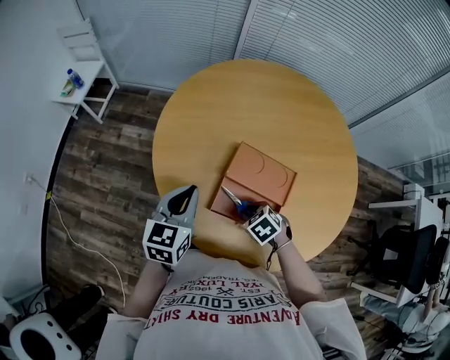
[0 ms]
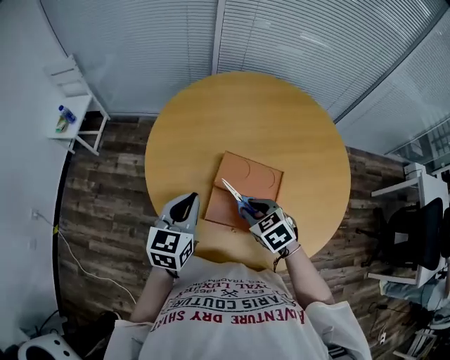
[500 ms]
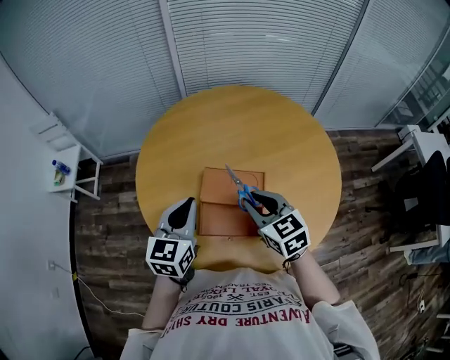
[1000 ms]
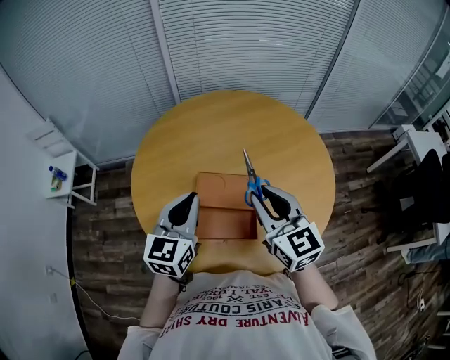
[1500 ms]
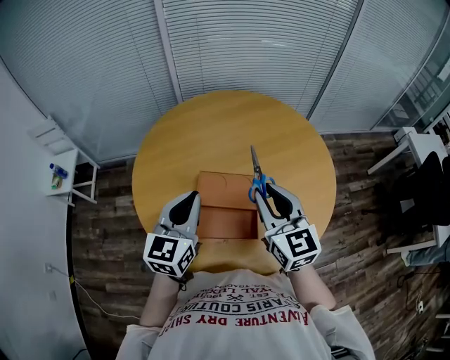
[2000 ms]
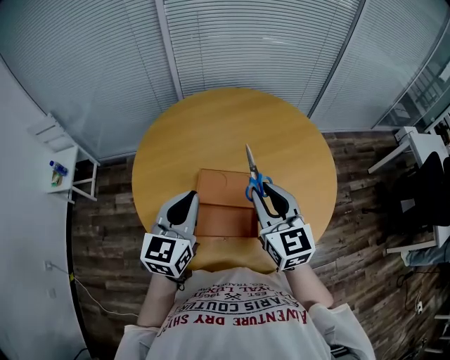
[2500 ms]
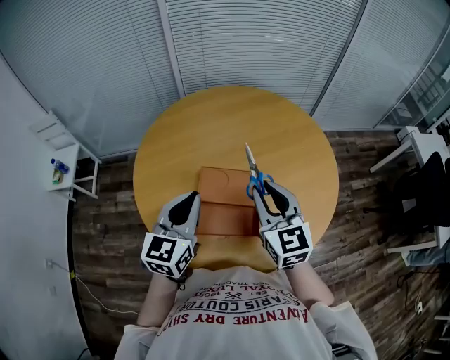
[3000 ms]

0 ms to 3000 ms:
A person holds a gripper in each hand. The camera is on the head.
0 ms to 1500 ms: The left gripper goes approximately 15 cm to the right and upward, and turns by about 20 degrees, while the right gripper is displaced upward by some 30 cm, and points its fingers about 60 degrees further upward.
1500 ms to 3000 ms: There are only small adjustments of the grippers.

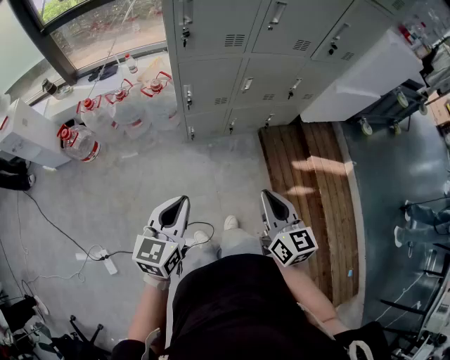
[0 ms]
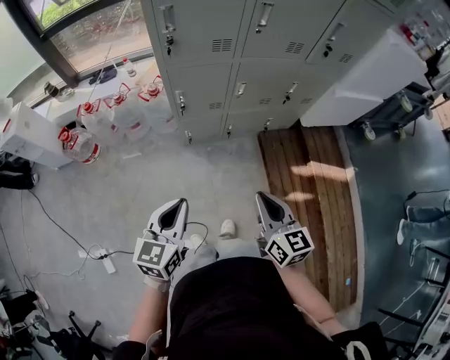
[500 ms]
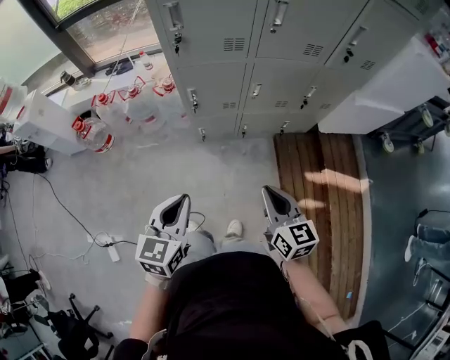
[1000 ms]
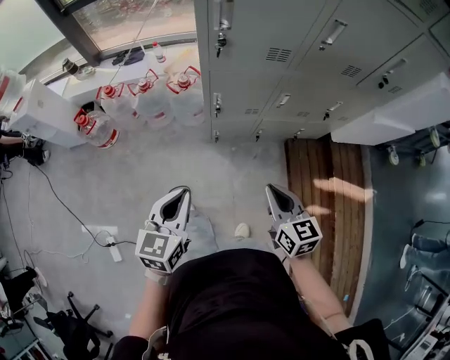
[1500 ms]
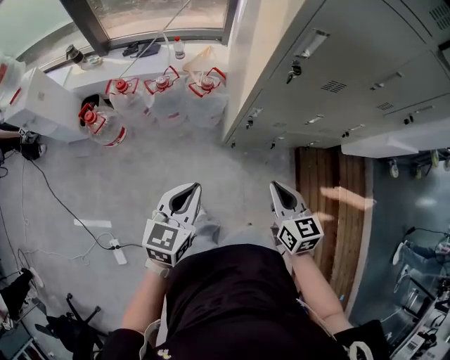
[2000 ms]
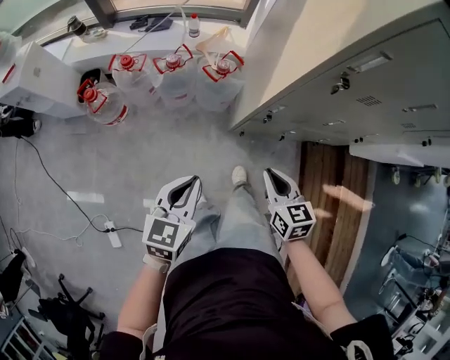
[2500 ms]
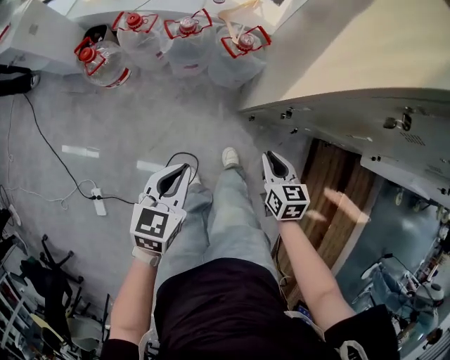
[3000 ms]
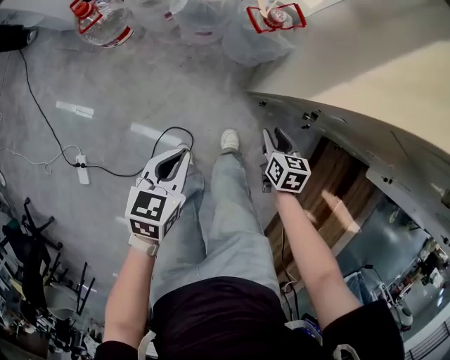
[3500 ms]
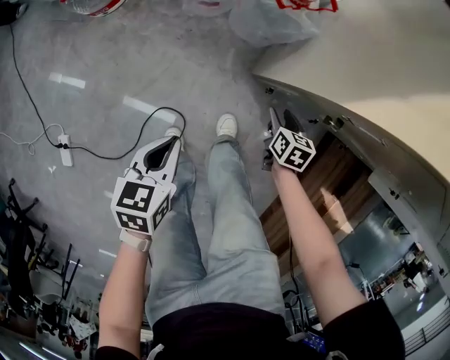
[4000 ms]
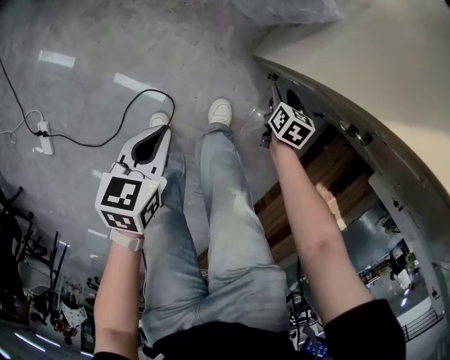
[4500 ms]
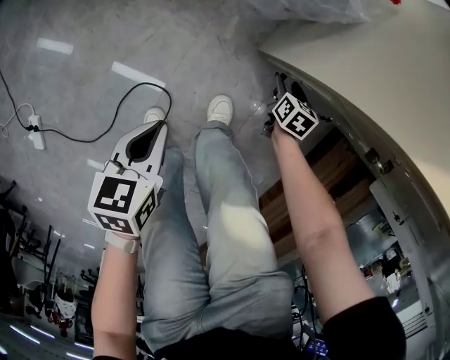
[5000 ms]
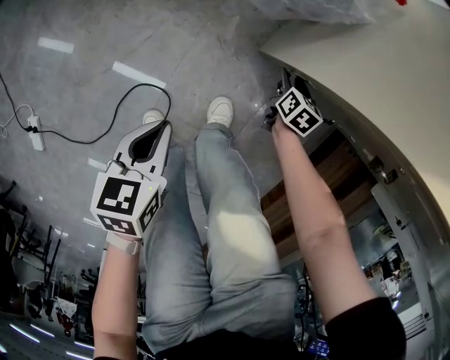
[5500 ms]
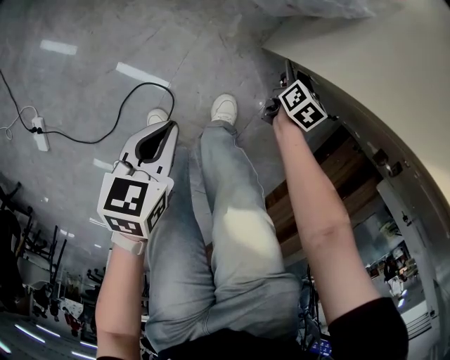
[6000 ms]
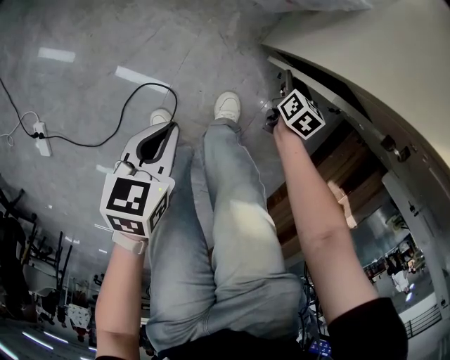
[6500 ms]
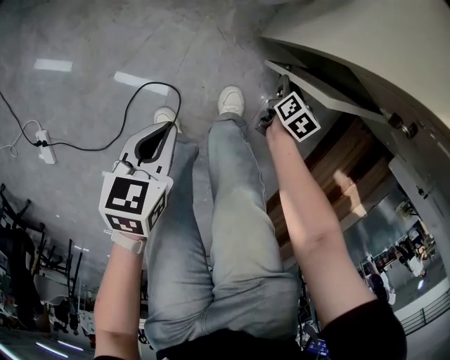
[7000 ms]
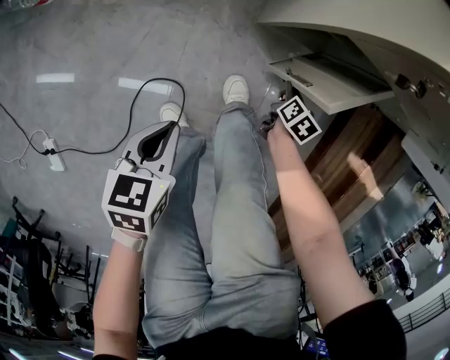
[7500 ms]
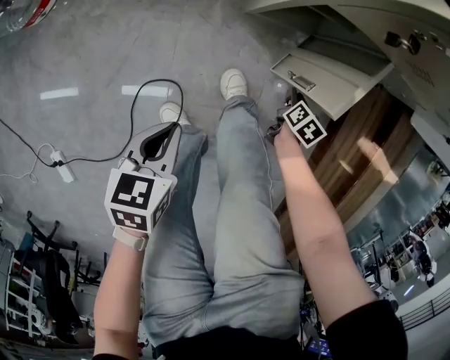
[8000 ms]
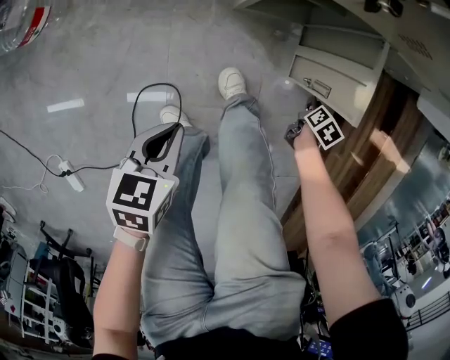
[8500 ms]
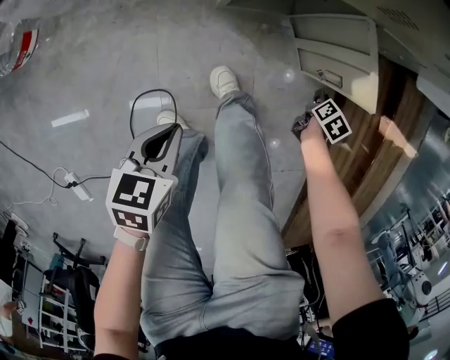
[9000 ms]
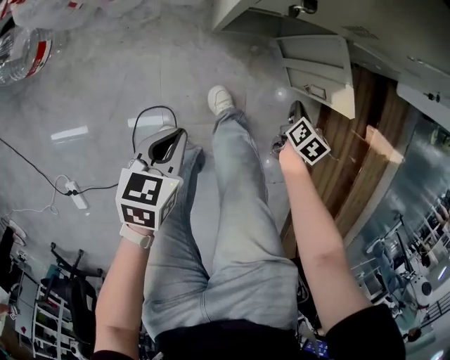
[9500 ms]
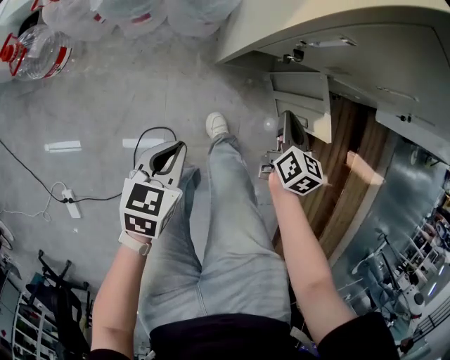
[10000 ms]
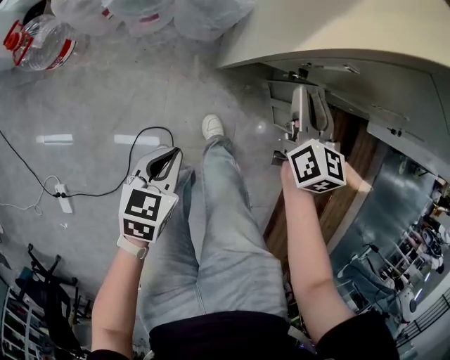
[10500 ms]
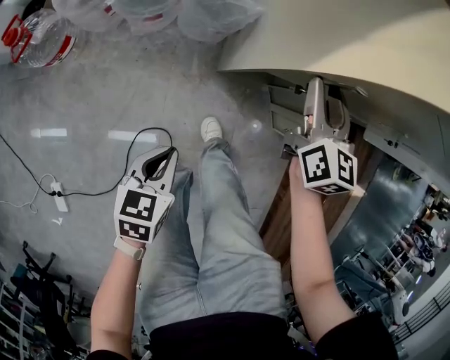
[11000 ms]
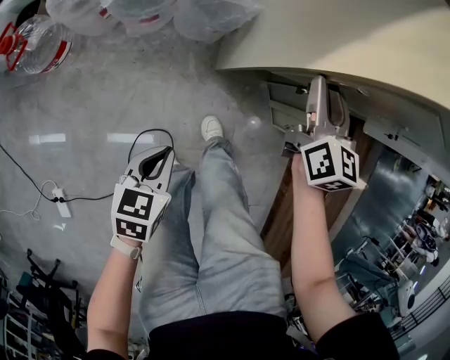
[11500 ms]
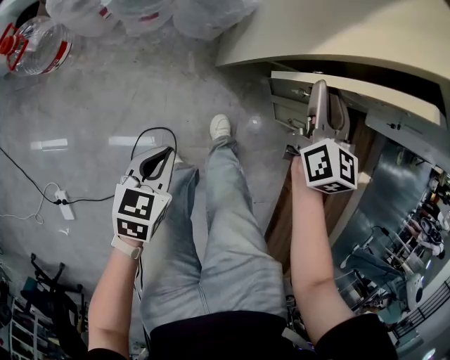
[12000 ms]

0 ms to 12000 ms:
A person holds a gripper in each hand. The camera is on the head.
0 ms to 2000 ms: The grippers both shift forward and to the left by approximately 30 cm.
2000 ms to 4000 ms: The left gripper moves downward, approximately 35 cm, and rotates roughly 40 degrees, while the right gripper is displaced downward and forward by approximately 50 cm, swivels roughly 30 degrees, and opens up.
4000 ms to 6000 ms: The left gripper heads downward, covering some 15 cm; the right gripper moves downward and forward, some 20 cm.
6000 ms to 8000 ms: The right gripper moves about 25 cm, turns by about 30 degrees, and closes its fingers; the left gripper moves roughly 10 cm, and rotates roughly 20 degrees.
8000 ms to 10000 ms: The left gripper moves upward, about 15 cm. Meanwhile the right gripper goes some 30 cm upward, turns by approximately 30 degrees, and closes up.
10000 ms to 12000 ms: The left gripper goes about 5 cm to the left; the right gripper is displaced upward, to the left and forward by approximately 20 cm, changes its angle by about 20 degrees, and opens its fingers.

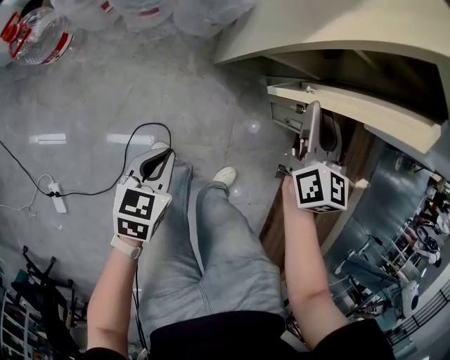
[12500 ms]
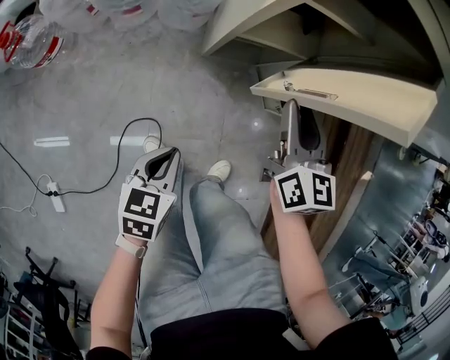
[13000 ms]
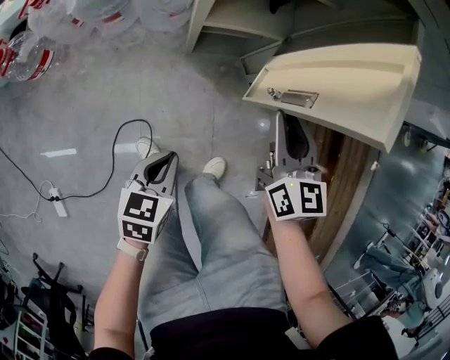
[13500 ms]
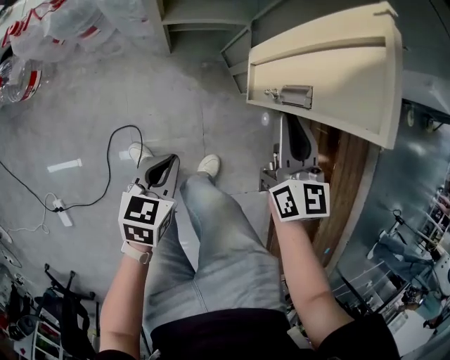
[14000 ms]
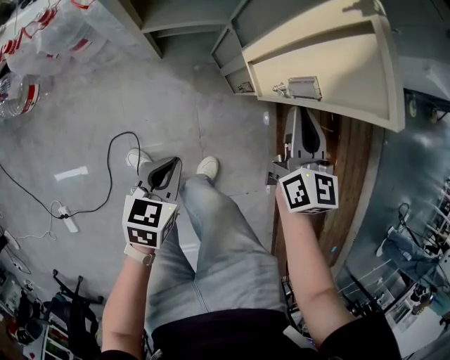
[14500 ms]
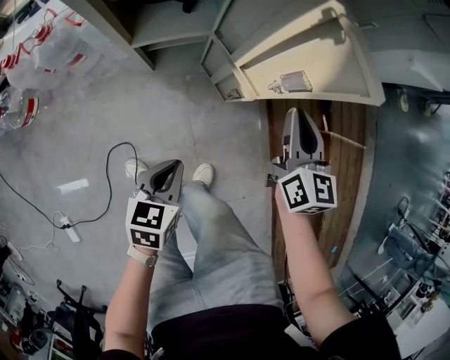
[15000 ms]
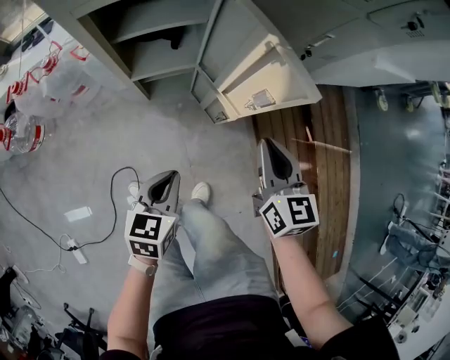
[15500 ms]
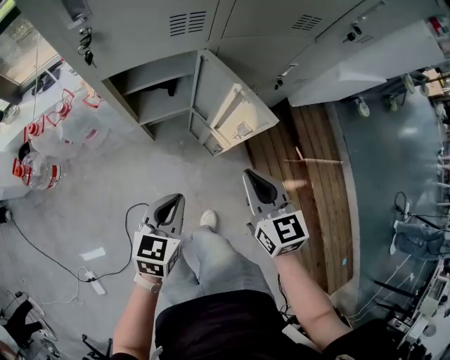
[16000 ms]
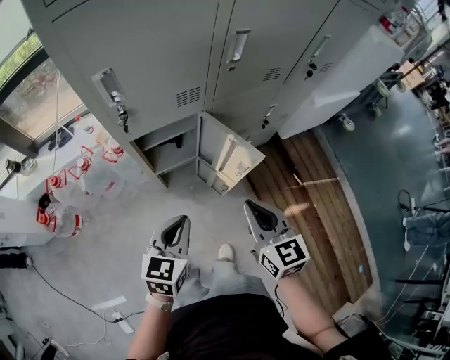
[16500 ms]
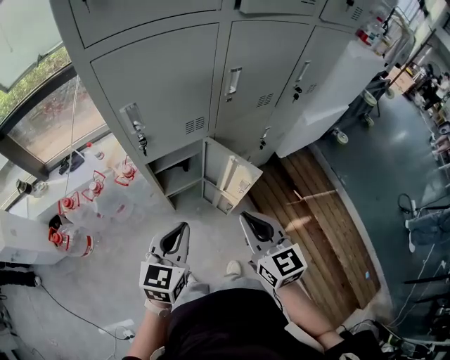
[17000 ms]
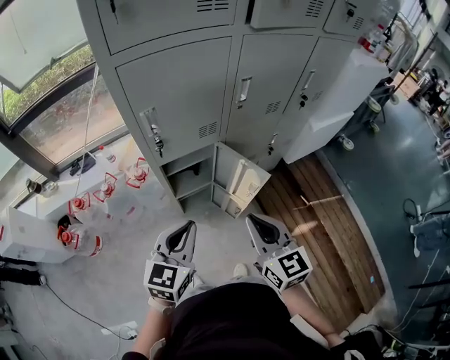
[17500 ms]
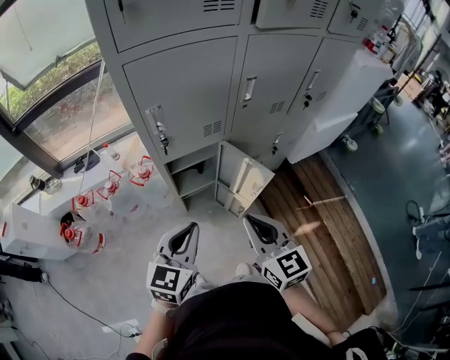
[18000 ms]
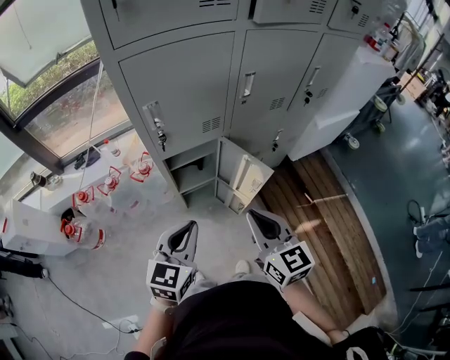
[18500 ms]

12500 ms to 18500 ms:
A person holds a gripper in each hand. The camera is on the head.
12500 ms to 14500 ms: Both grippers move to the right, roughly 30 cm. The right gripper closes its fingers.
14500 ms to 16500 ms: The grippers both shift upward by approximately 35 cm. The left gripper changes its angle by some 30 degrees.
16500 ms to 18500 ms: The left gripper shifts some 10 cm upward. Meanwhile the right gripper goes roughly 10 cm upward and to the left.

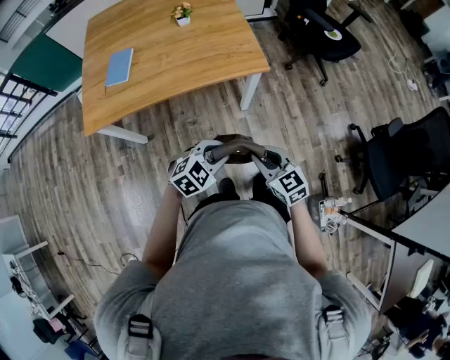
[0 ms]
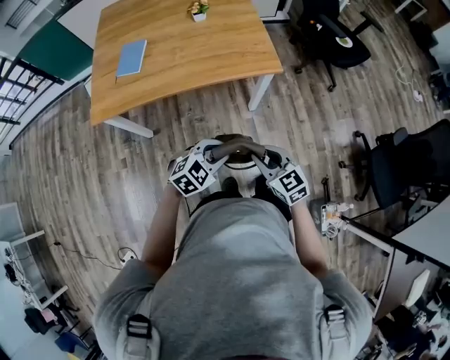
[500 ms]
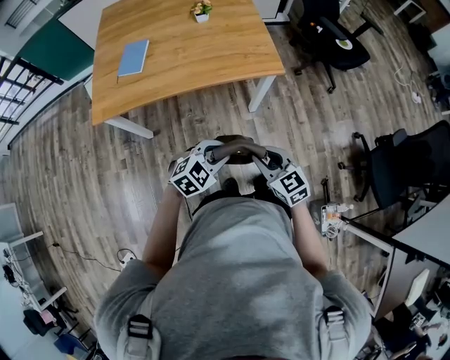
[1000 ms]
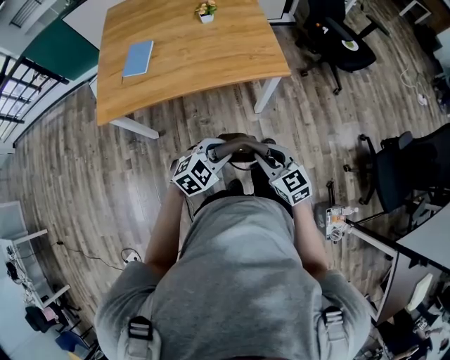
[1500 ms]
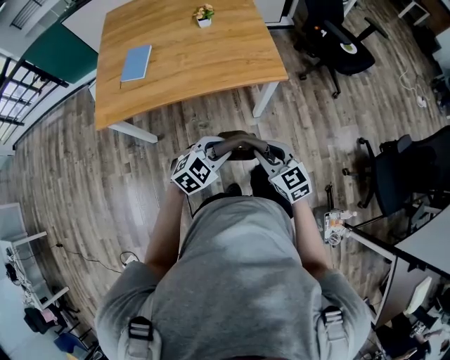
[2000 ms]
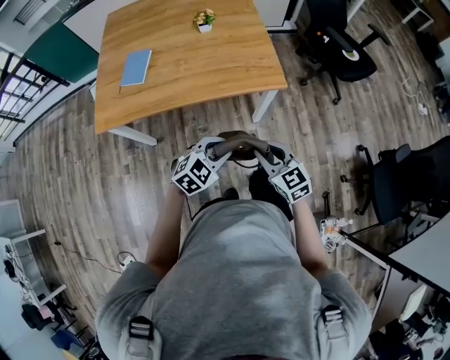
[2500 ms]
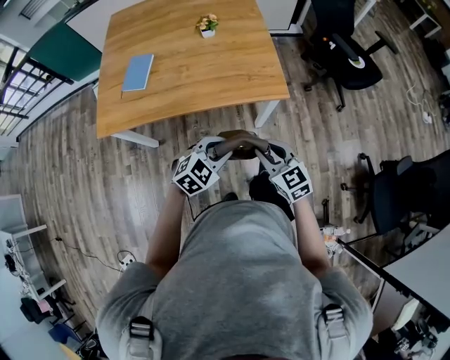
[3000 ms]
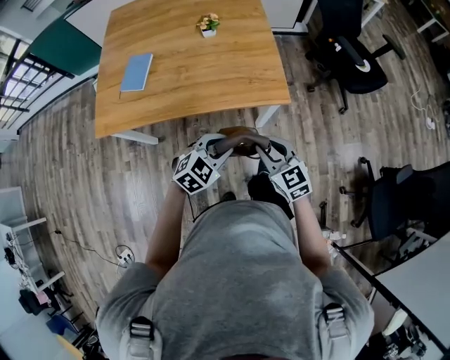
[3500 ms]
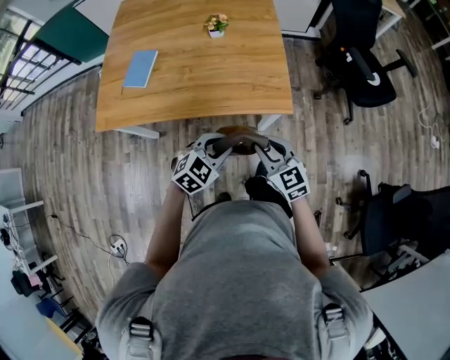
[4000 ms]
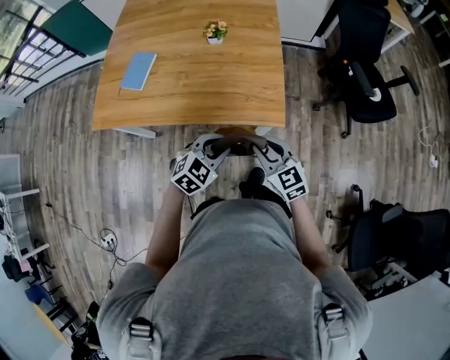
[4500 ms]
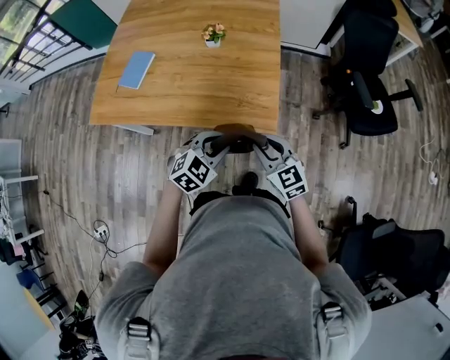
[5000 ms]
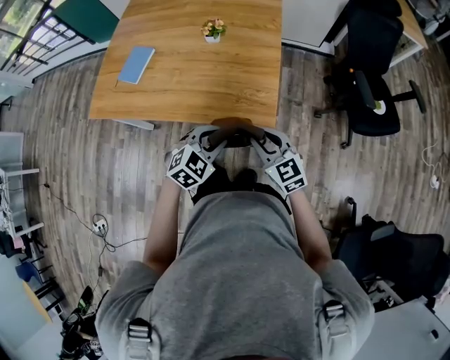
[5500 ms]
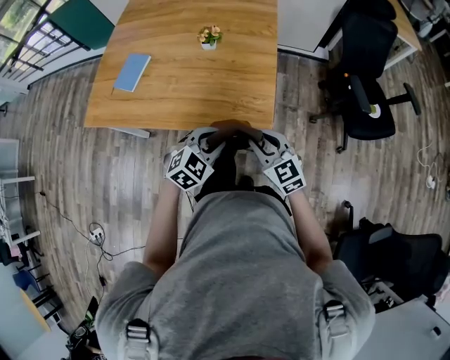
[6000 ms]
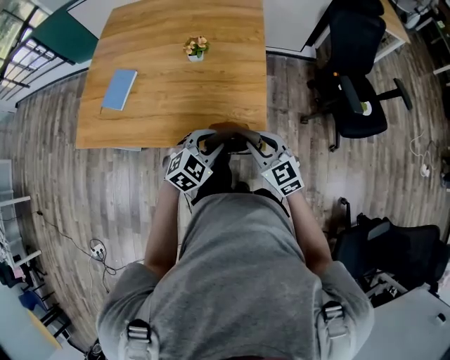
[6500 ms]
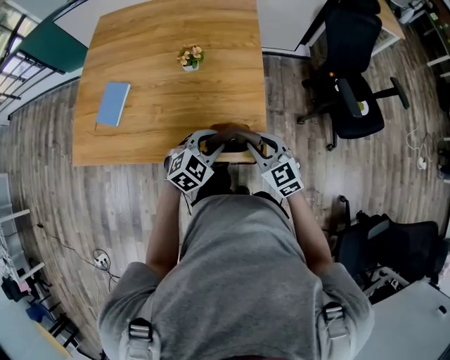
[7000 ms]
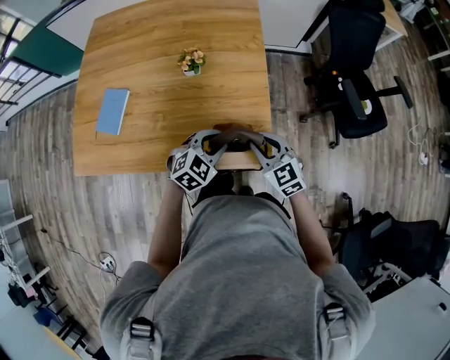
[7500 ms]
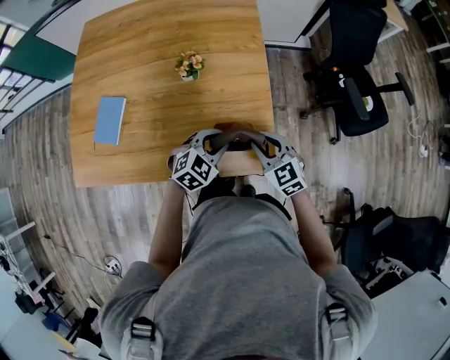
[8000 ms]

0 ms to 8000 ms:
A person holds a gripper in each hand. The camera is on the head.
0 ms to 2000 ms: The grippers both shift to the left by some 5 cm.
2000 ms to 4000 ms: Both grippers travel together forward, roughly 20 cm.
4000 ms to 6000 ms: Both grippers travel together forward and to the right, roughly 15 cm.
6000 ms to 8000 ms: Both grippers move forward, about 20 cm.
